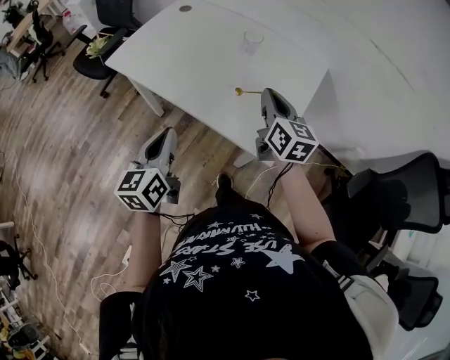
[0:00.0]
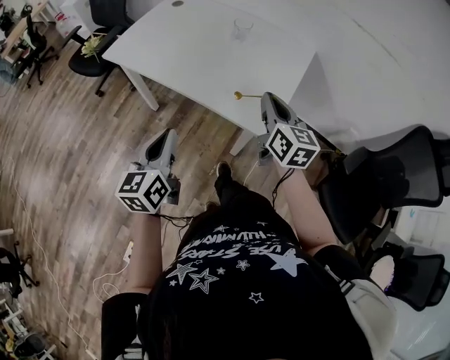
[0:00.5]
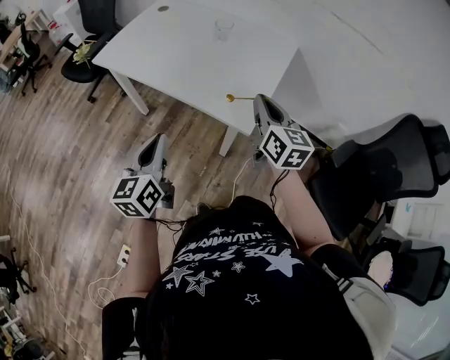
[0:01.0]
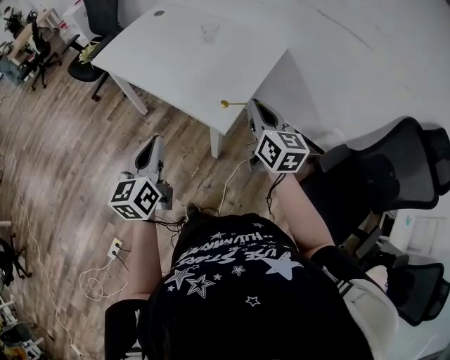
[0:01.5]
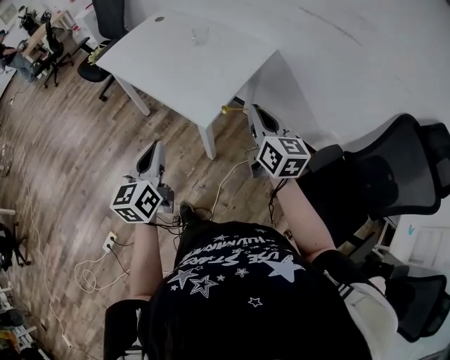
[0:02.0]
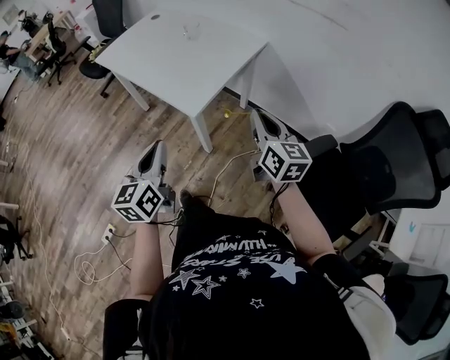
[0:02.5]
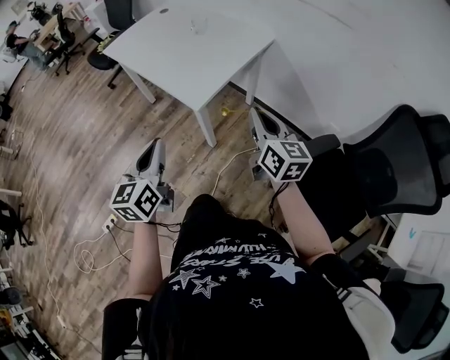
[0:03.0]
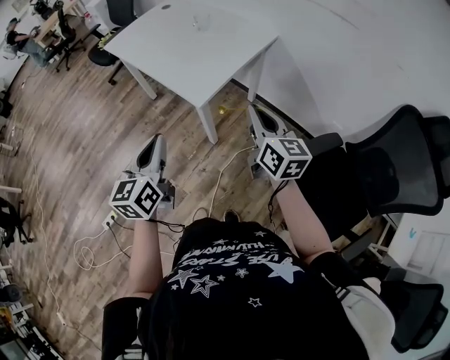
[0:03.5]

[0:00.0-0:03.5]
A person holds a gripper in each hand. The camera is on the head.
0:00.0 to 0:02.0: The right gripper heads backward and to the right, covering about 30 cm; the left gripper moves to the right and backward, approximately 30 cm.
0:02.0 to 0:03.5: The left gripper shifts about 10 cm backward and to the right. Meanwhile the right gripper moves backward, roughly 5 cm.

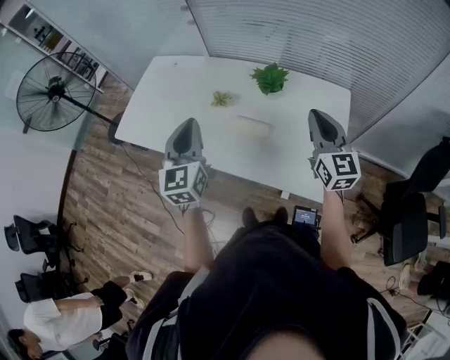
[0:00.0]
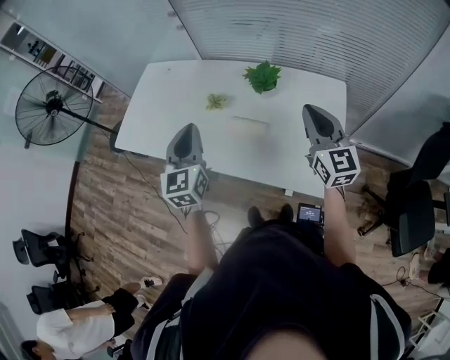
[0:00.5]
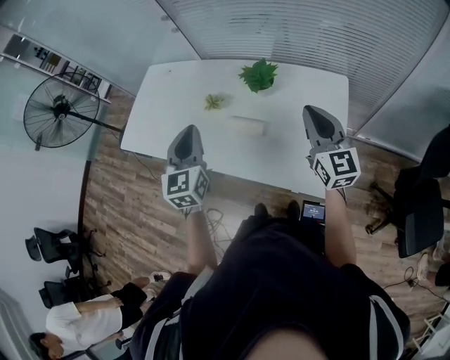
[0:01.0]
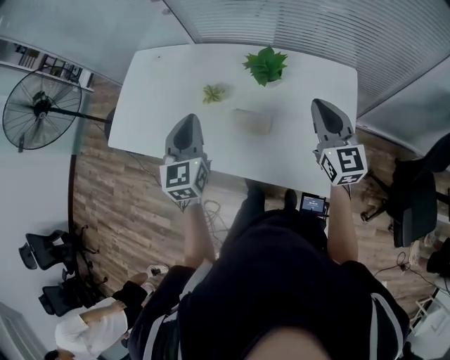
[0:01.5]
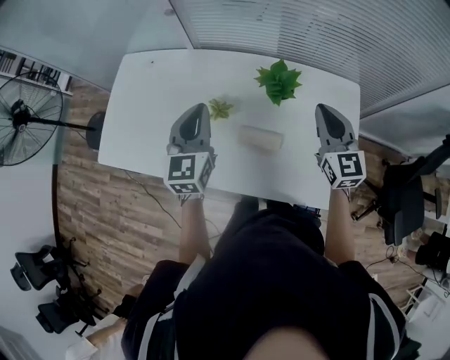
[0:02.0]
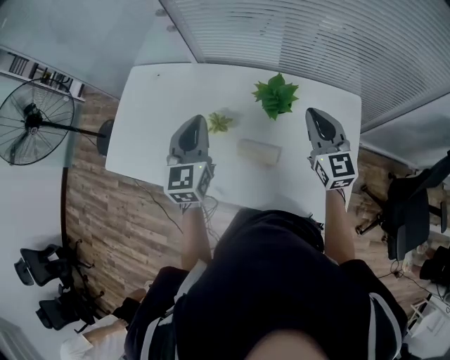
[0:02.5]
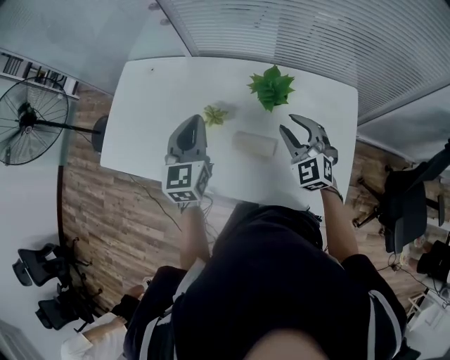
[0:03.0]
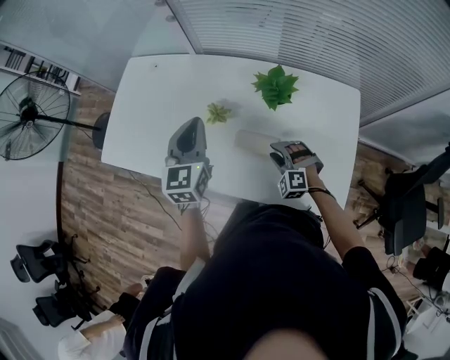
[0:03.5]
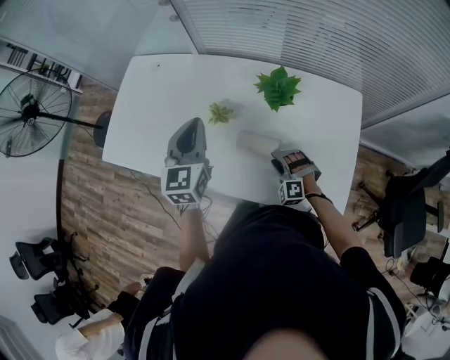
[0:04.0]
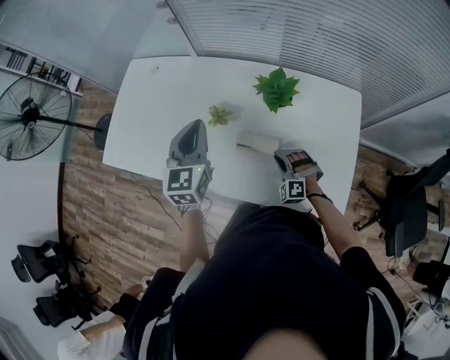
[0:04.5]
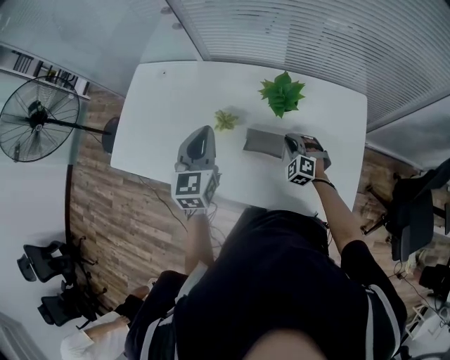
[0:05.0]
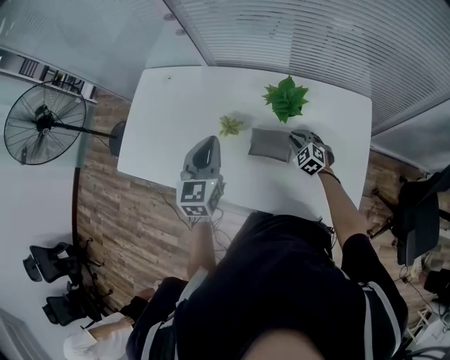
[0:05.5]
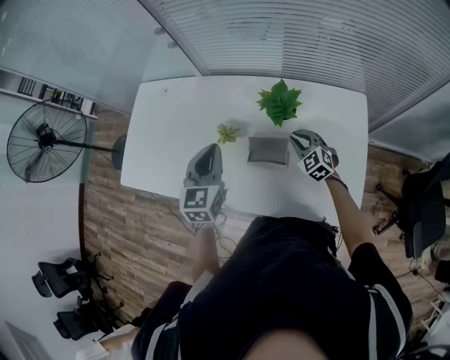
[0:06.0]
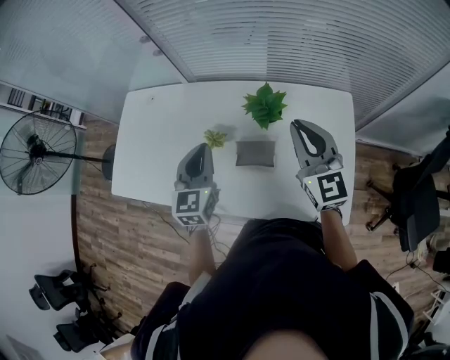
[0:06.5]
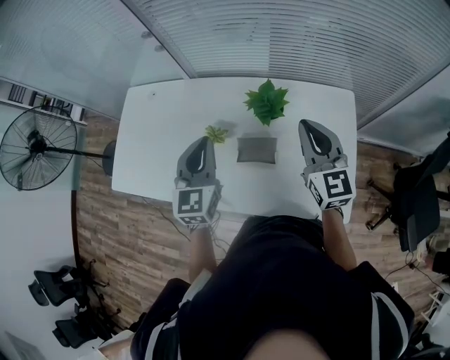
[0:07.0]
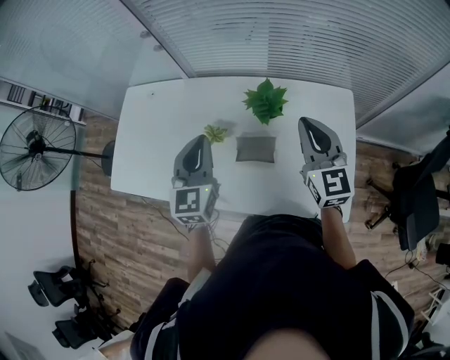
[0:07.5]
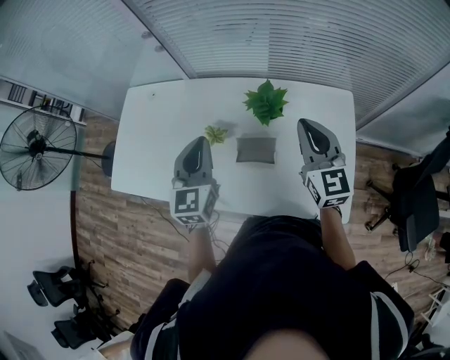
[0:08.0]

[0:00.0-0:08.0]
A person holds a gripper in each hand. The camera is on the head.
0:00.0 to 0:02.0: The grippers both shift forward by about 15 cm.
0:02.0 to 0:04.0: The right gripper travels downward by about 30 cm, twists some 70 degrees counterclockwise, seen from behind, and opens.
0:04.0 to 0:06.0: The right gripper heads forward, upward and to the right, covering approximately 15 cm, twists about 40 degrees clockwise, seen from behind, and closes.
0:06.0 to 0:08.0: The left gripper shifts by approximately 5 cm; the right gripper moves upward, roughly 25 cm, and changes its angle by some 40 degrees.

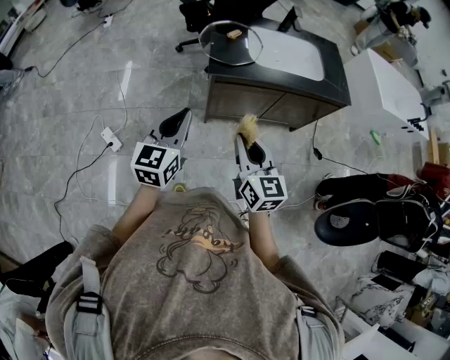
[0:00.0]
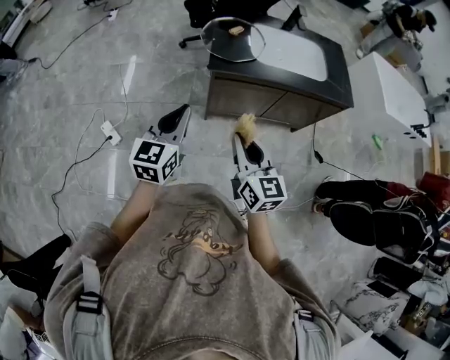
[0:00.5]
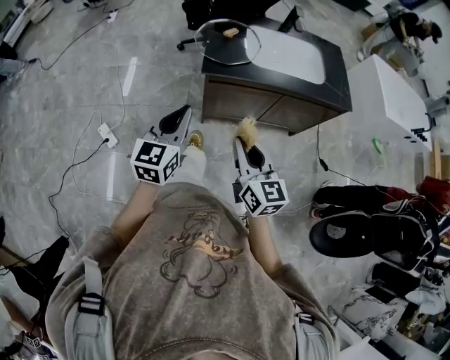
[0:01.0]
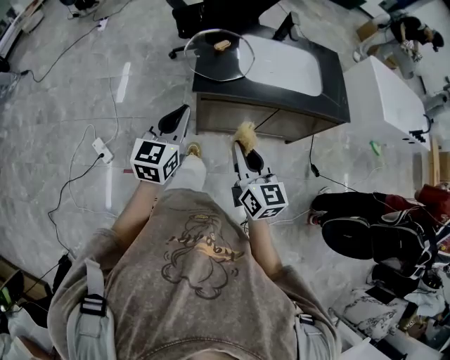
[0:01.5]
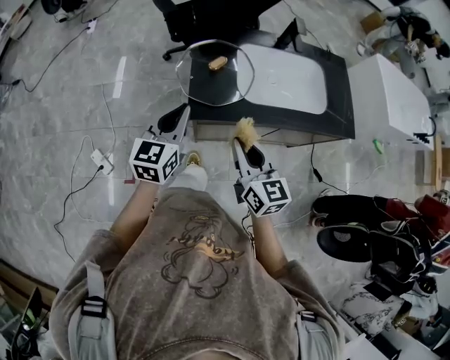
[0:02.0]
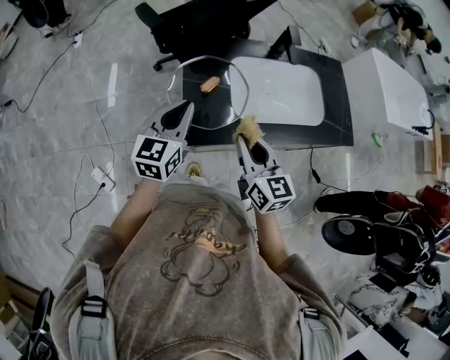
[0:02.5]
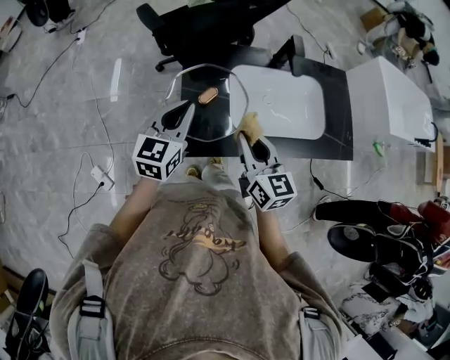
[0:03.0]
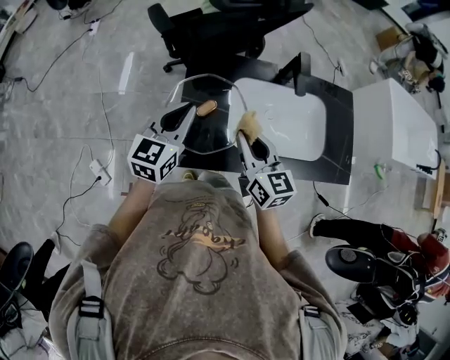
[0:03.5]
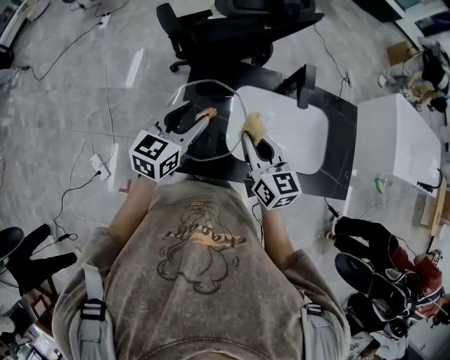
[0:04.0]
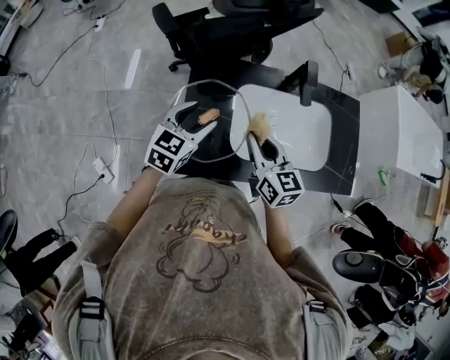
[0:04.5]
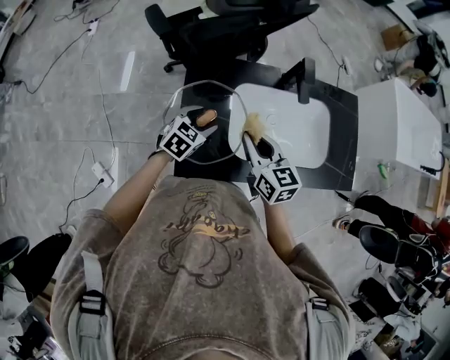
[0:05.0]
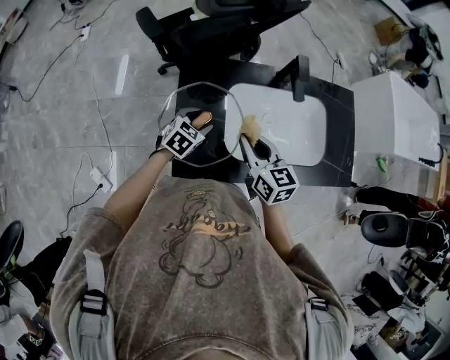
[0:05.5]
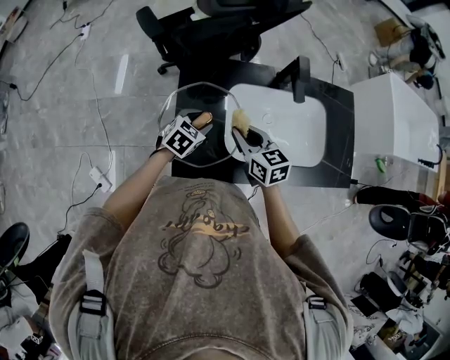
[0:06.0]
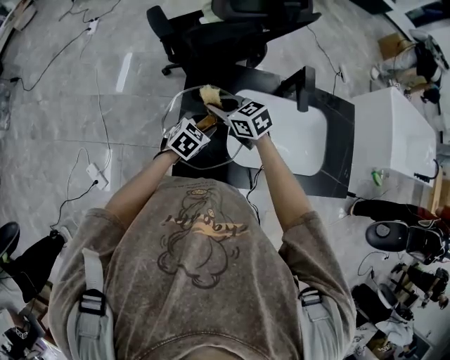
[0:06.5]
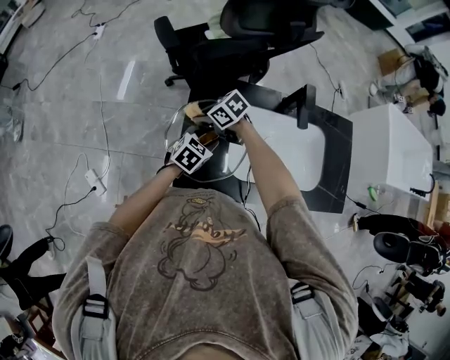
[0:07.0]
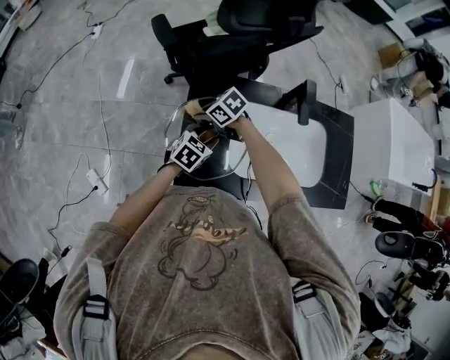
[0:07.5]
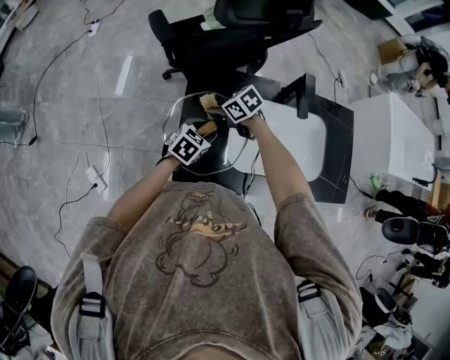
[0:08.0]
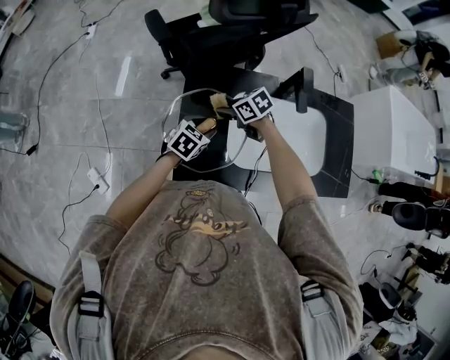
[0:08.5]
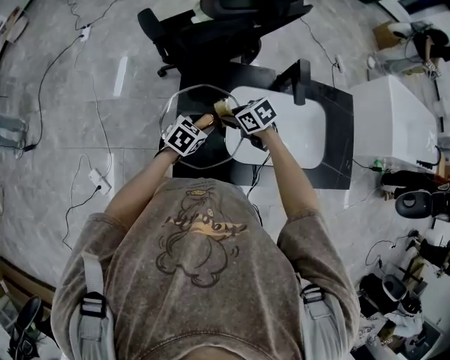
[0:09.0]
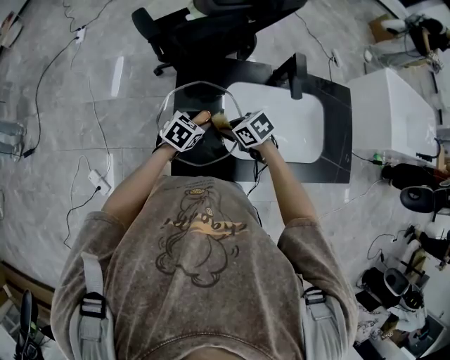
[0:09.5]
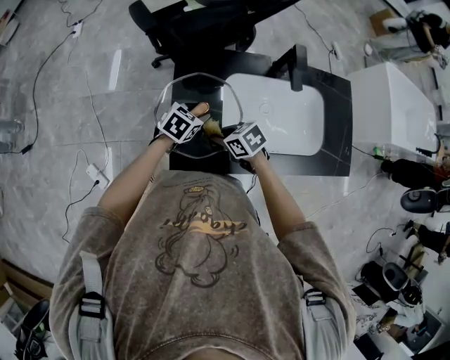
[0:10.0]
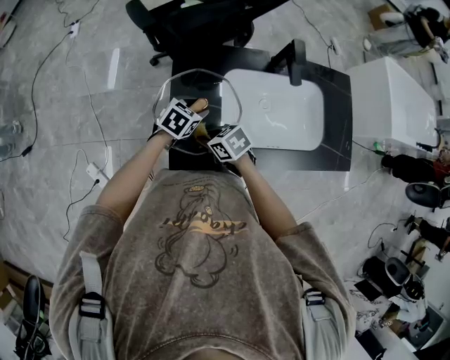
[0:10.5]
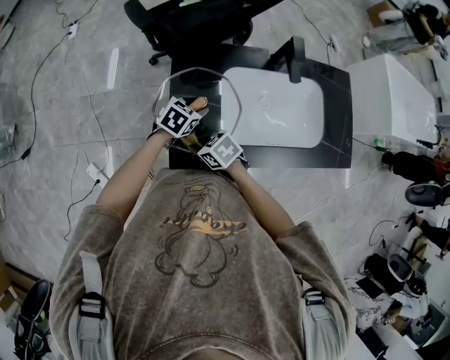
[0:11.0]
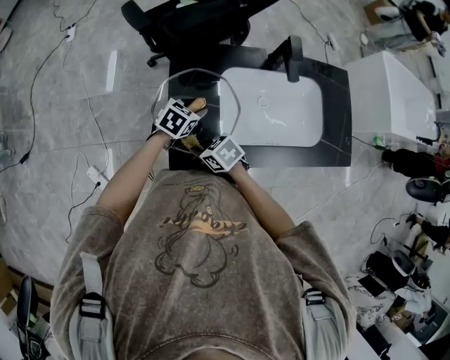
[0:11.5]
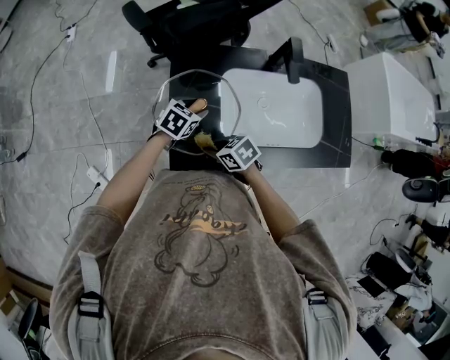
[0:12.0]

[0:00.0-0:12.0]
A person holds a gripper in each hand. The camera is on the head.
0:00.0 to 0:02.0: The two grippers go approximately 25 cm forward.
0:02.0 to 0:04.0: The grippers both shift forward by approximately 25 cm. The left gripper opens.
0:04.0 to 0:06.0: The right gripper travels downward by some 10 cm; the left gripper goes roughly 20 cm downward, and angles its fingers downward, by approximately 30 degrees.
0:06.0 to 0:08.0: The right gripper changes place by some 15 cm, and changes its angle by approximately 40 degrees.
0:08.0 to 0:10.0: The right gripper changes place by about 15 cm.
0:10.0 to 0:12.0: The right gripper ends up about 5 cm from where it was.

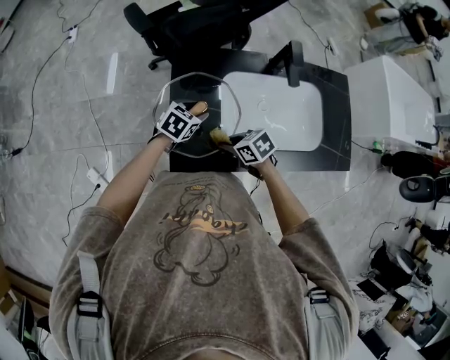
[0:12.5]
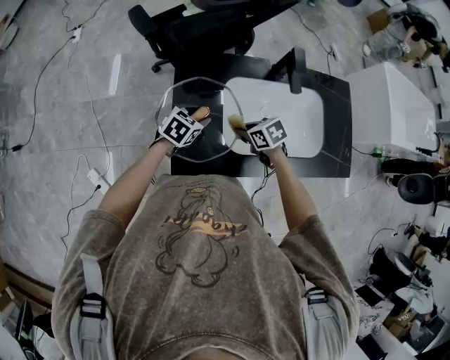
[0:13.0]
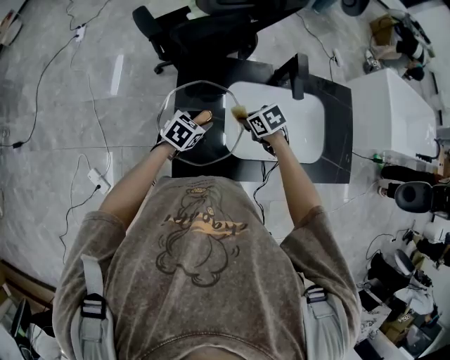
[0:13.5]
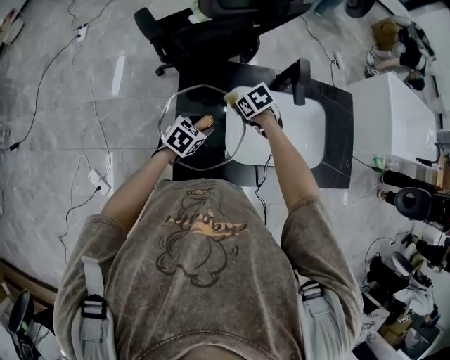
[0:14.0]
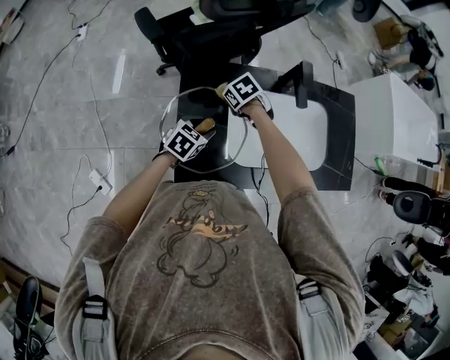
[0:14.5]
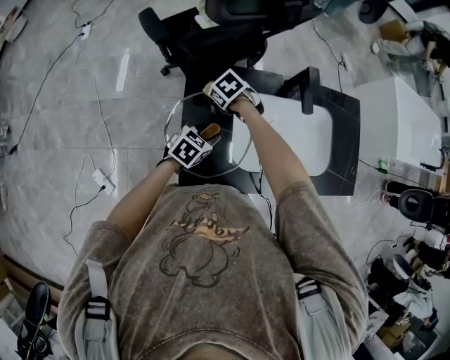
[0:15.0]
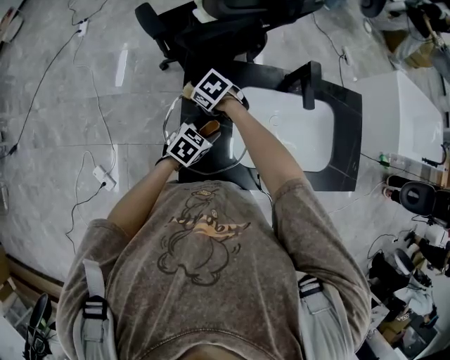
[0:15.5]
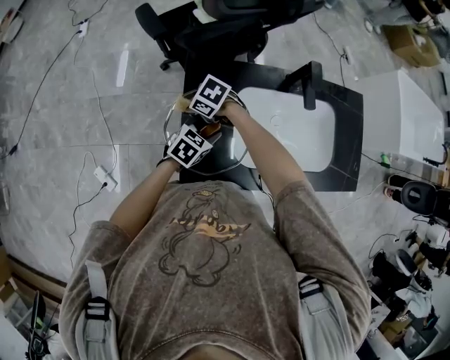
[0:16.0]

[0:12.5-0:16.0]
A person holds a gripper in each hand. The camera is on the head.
0:12.5 to 0:14.5: The right gripper changes place by about 25 cm, and swivels roughly 20 degrees.
0:14.5 to 0:16.0: The right gripper ends up some 15 cm from where it was, and changes its angle by some 30 degrees.
